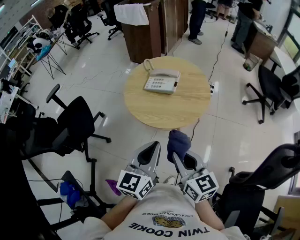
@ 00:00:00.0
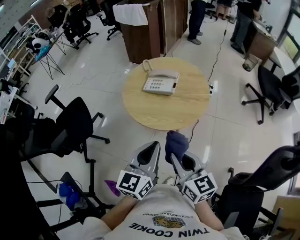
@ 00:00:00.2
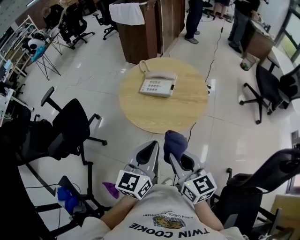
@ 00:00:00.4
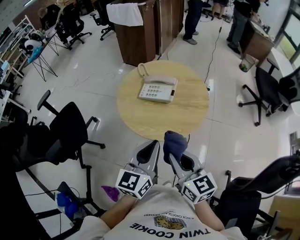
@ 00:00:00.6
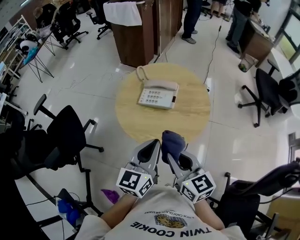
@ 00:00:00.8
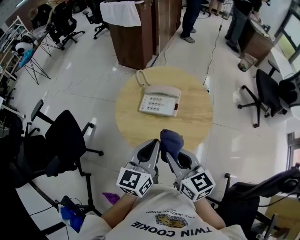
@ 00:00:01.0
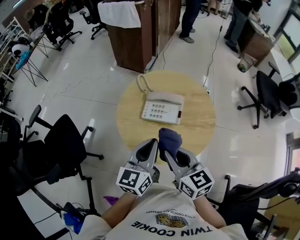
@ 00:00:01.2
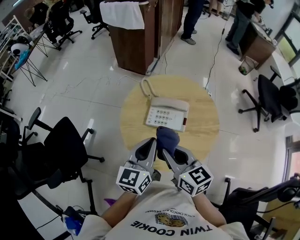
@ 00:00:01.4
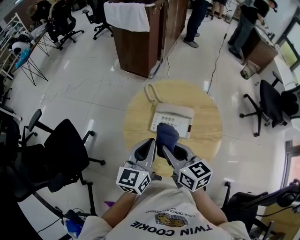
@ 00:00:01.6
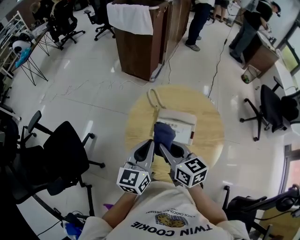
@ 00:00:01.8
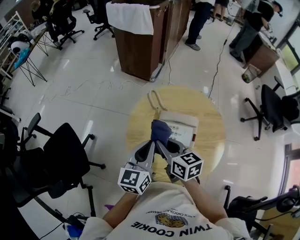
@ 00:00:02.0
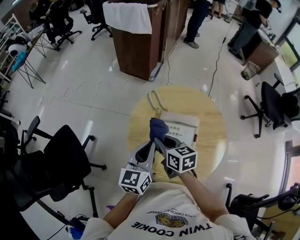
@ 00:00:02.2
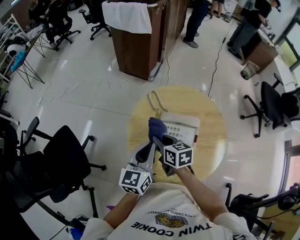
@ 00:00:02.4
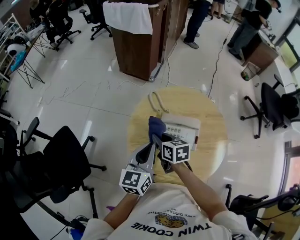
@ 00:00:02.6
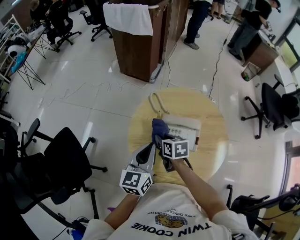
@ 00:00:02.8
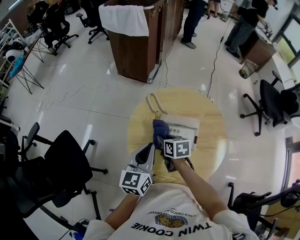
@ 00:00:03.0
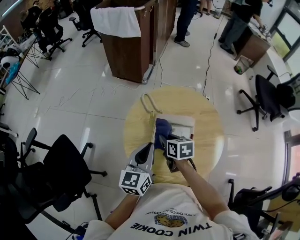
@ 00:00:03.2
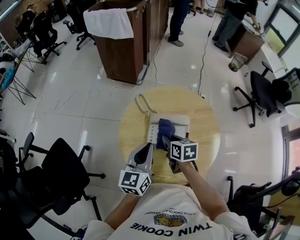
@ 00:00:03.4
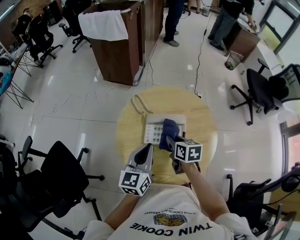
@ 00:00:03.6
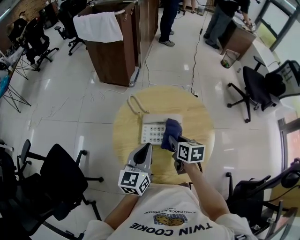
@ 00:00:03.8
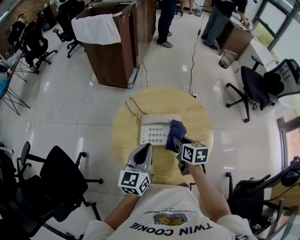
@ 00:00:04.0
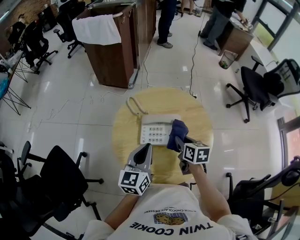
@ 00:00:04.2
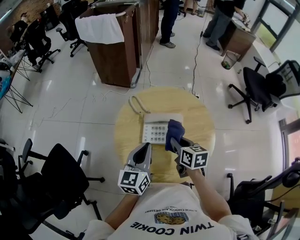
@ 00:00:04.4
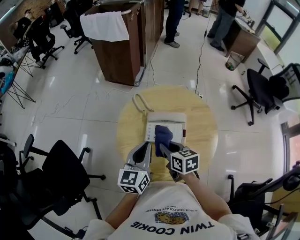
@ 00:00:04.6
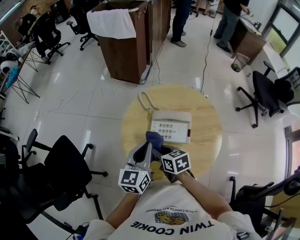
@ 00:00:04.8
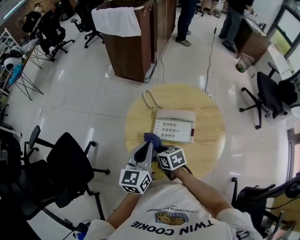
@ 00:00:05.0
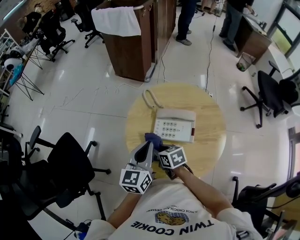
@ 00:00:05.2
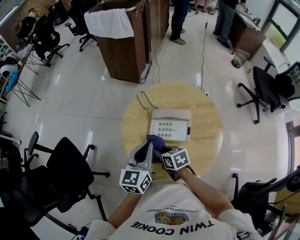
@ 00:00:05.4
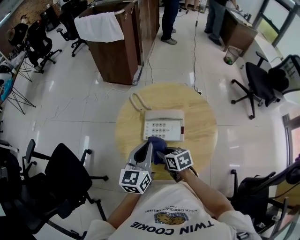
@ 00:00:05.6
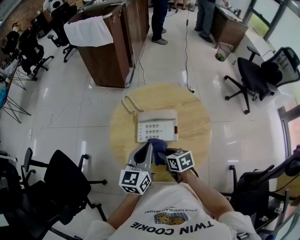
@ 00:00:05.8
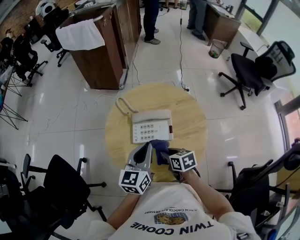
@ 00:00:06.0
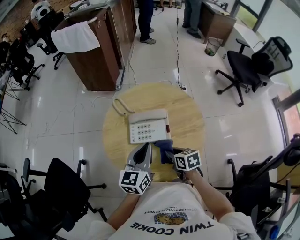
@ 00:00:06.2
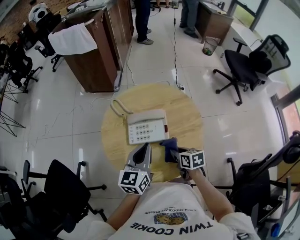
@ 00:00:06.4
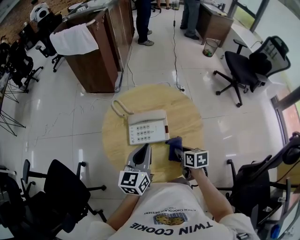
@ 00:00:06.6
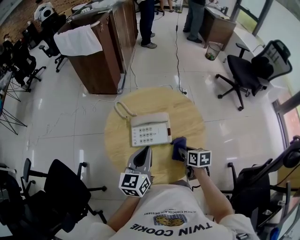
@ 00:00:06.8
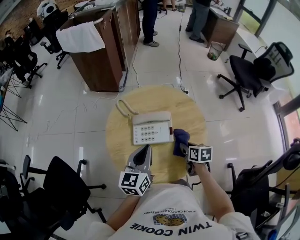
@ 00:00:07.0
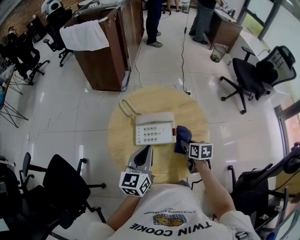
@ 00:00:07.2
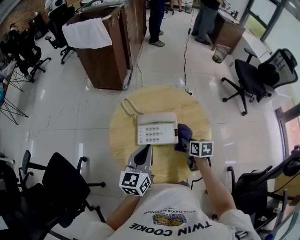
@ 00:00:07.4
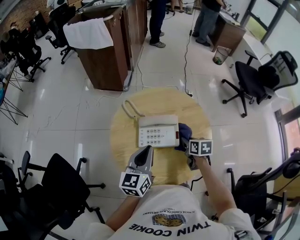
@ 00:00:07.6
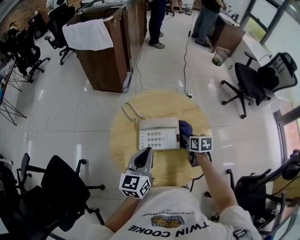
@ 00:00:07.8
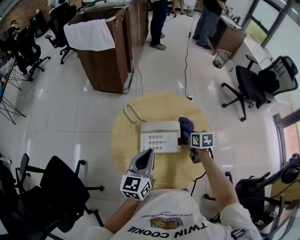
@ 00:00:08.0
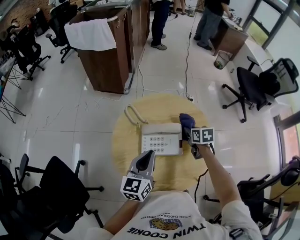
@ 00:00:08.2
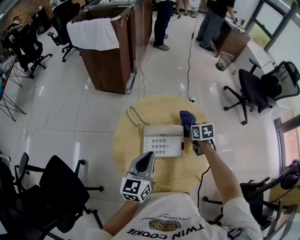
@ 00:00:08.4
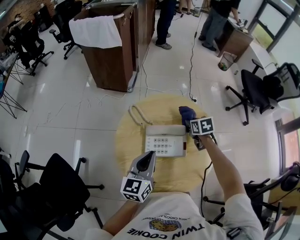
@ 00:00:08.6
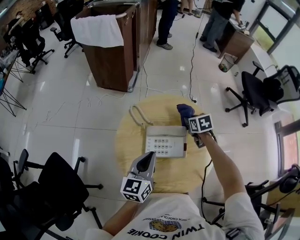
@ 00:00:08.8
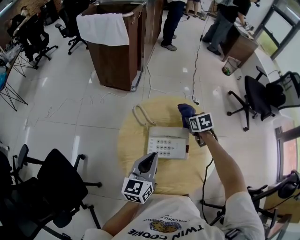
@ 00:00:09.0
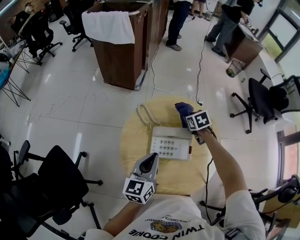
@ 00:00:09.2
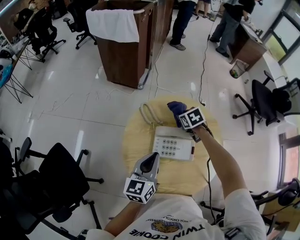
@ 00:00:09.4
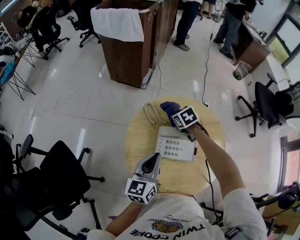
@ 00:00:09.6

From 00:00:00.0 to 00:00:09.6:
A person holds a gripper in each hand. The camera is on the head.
From 00:00:00.0 to 00:00:01.6: The grippers both shift forward by roughly 30 cm.
From 00:00:01.6 to 00:00:03.2: The right gripper heads downward and forward, covering approximately 20 cm, and changes its angle by some 30 degrees, while the left gripper goes approximately 5 cm forward.
From 00:00:03.2 to 00:00:04.8: The right gripper goes about 10 cm backward, and reaches some 15 cm to the right, then returns.
From 00:00:04.8 to 00:00:06.4: The left gripper heads to the right, covering roughly 10 cm; the right gripper shifts about 15 cm to the right, and swivels roughly 20 degrees.
From 00:00:06.4 to 00:00:08.0: The right gripper is displaced forward by approximately 15 cm.
From 00:00:08.0 to 00:00:09.6: The right gripper moves to the left and forward, some 20 cm, and swivels roughly 40 degrees.

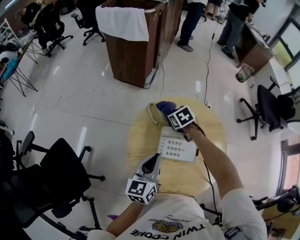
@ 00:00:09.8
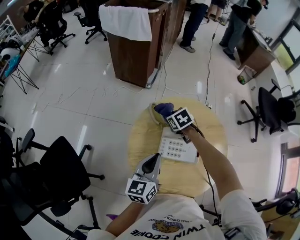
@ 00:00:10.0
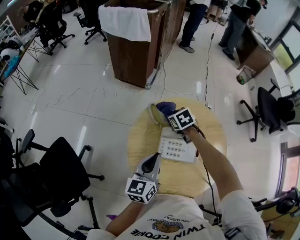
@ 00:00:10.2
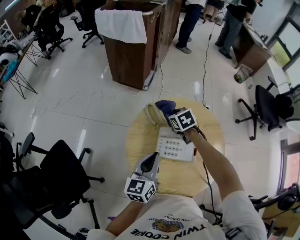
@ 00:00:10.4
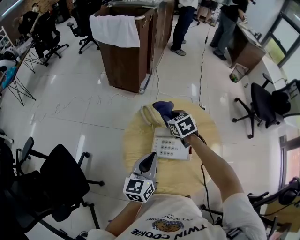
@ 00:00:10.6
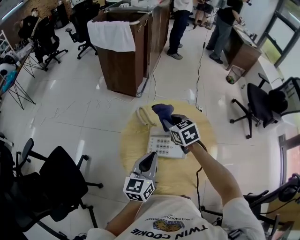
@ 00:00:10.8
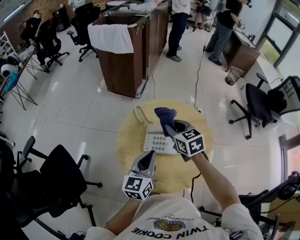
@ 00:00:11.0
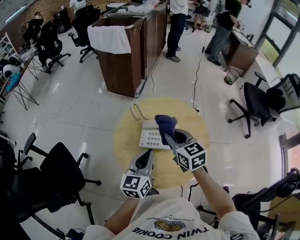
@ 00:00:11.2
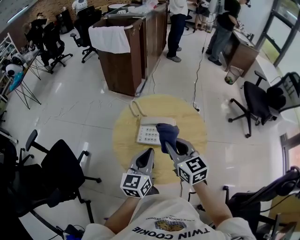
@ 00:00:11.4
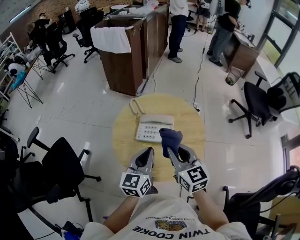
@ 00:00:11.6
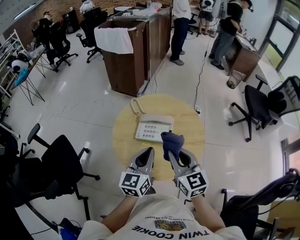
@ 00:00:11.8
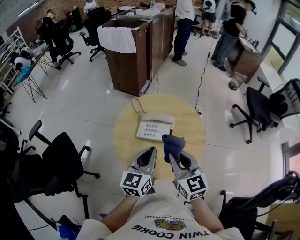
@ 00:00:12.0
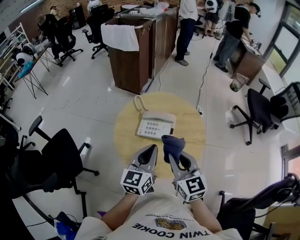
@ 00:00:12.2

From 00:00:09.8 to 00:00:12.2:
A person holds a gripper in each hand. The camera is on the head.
From 00:00:09.8 to 00:00:11.0: The right gripper is displaced upward and backward by some 20 cm, and changes its angle by roughly 30 degrees; the left gripper shifts by approximately 5 cm.
From 00:00:11.0 to 00:00:12.2: The left gripper moves backward and to the right, some 10 cm; the right gripper shifts roughly 25 cm backward, and turns by approximately 20 degrees.

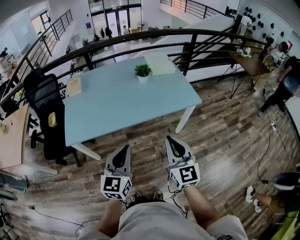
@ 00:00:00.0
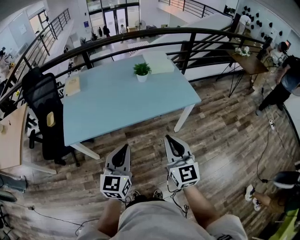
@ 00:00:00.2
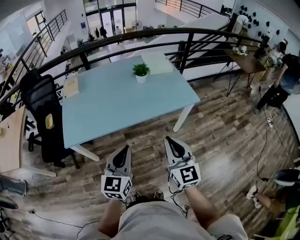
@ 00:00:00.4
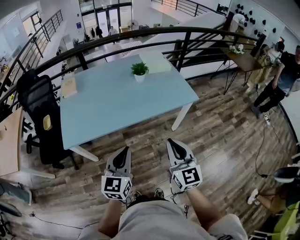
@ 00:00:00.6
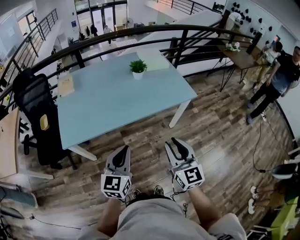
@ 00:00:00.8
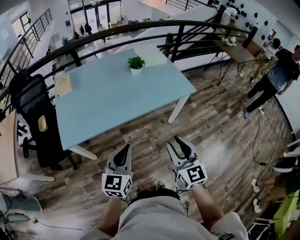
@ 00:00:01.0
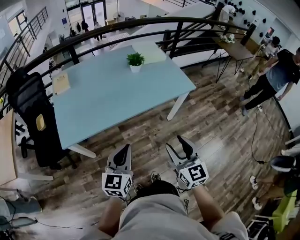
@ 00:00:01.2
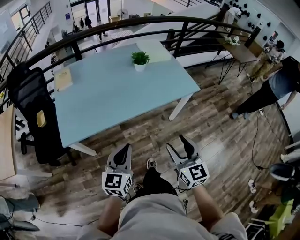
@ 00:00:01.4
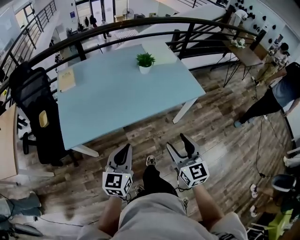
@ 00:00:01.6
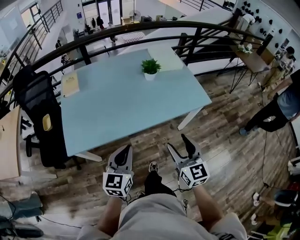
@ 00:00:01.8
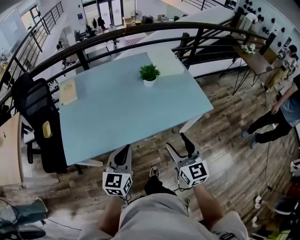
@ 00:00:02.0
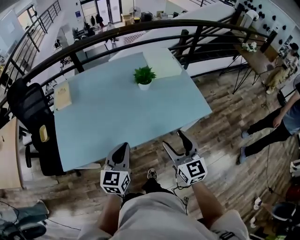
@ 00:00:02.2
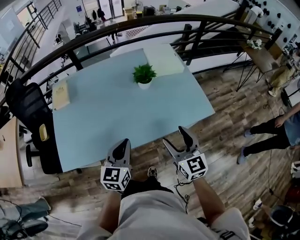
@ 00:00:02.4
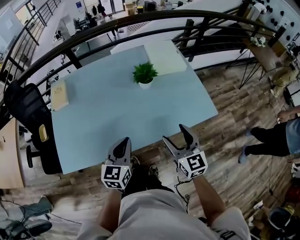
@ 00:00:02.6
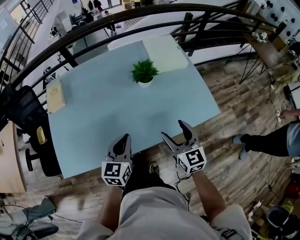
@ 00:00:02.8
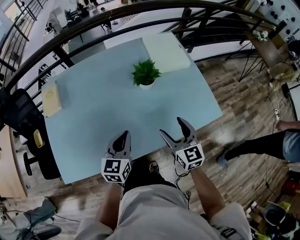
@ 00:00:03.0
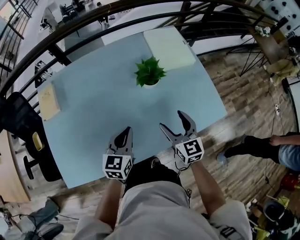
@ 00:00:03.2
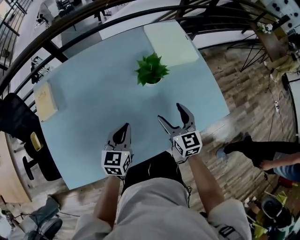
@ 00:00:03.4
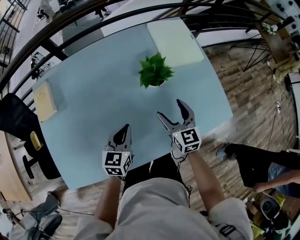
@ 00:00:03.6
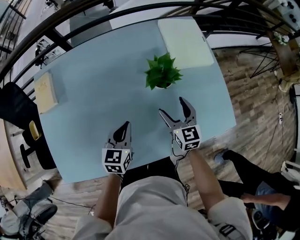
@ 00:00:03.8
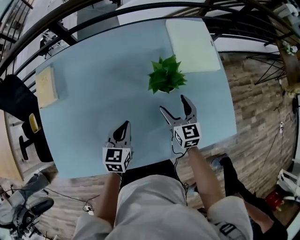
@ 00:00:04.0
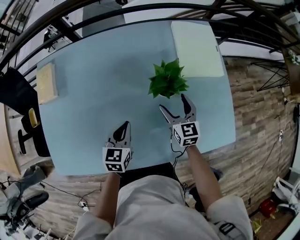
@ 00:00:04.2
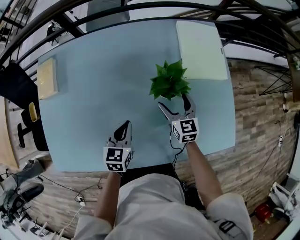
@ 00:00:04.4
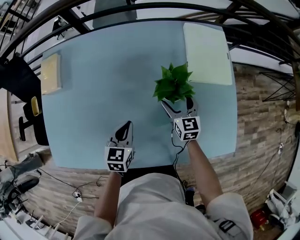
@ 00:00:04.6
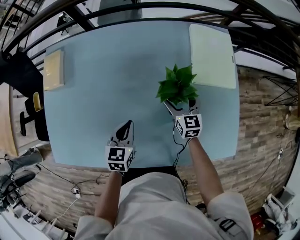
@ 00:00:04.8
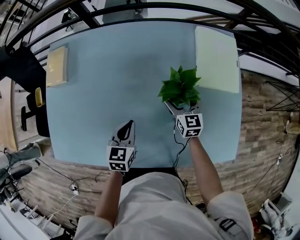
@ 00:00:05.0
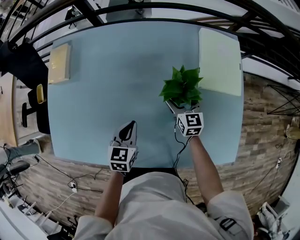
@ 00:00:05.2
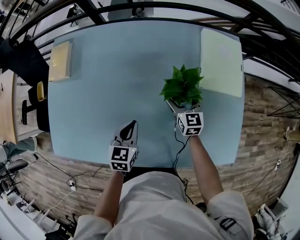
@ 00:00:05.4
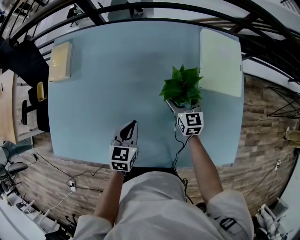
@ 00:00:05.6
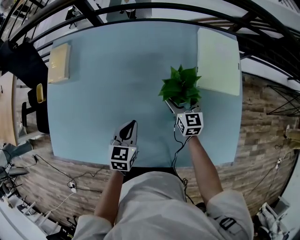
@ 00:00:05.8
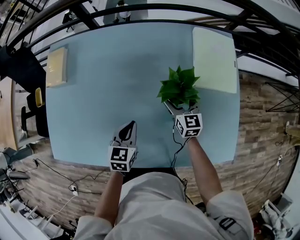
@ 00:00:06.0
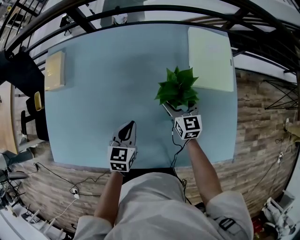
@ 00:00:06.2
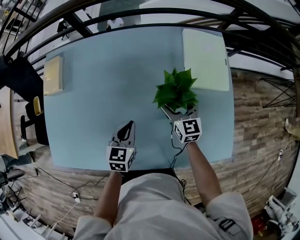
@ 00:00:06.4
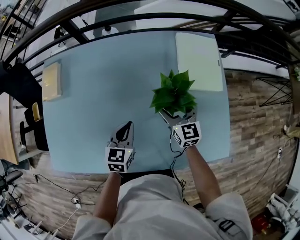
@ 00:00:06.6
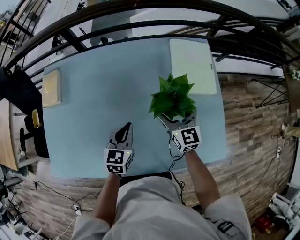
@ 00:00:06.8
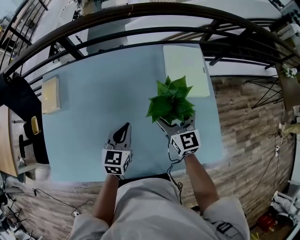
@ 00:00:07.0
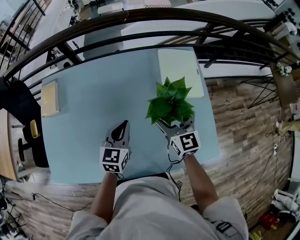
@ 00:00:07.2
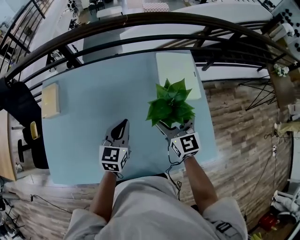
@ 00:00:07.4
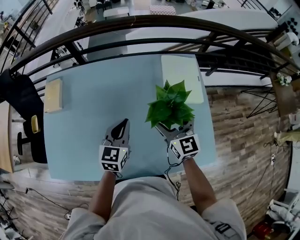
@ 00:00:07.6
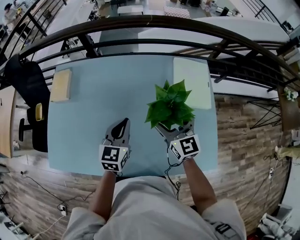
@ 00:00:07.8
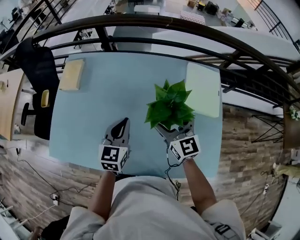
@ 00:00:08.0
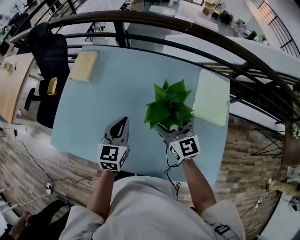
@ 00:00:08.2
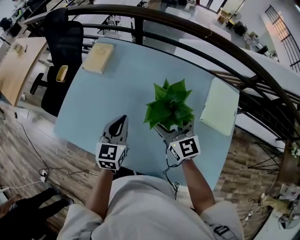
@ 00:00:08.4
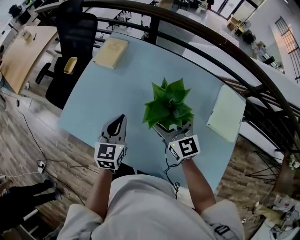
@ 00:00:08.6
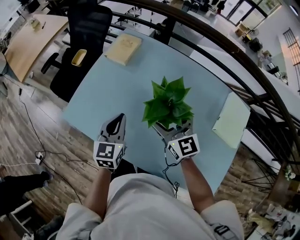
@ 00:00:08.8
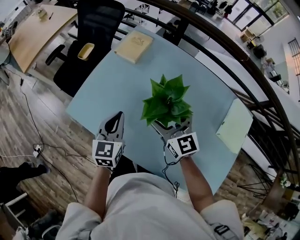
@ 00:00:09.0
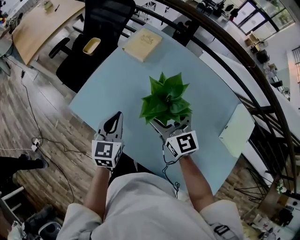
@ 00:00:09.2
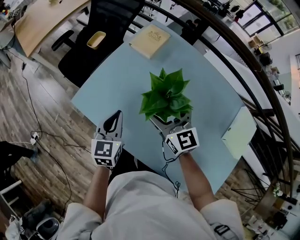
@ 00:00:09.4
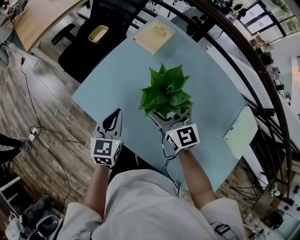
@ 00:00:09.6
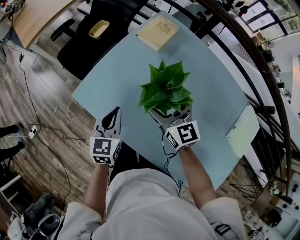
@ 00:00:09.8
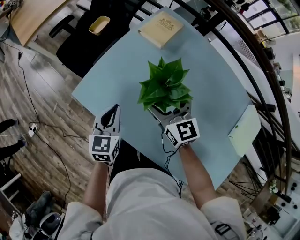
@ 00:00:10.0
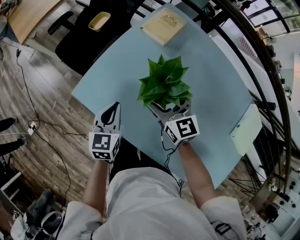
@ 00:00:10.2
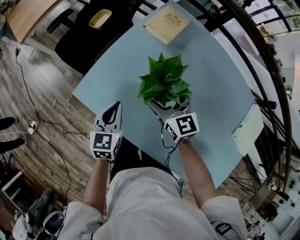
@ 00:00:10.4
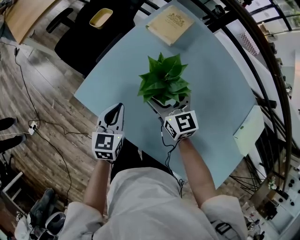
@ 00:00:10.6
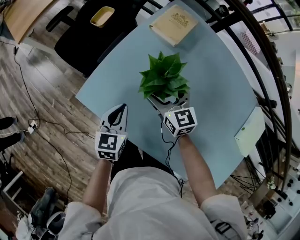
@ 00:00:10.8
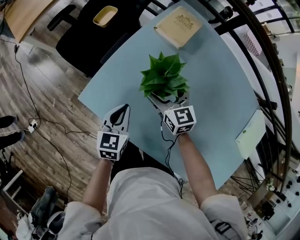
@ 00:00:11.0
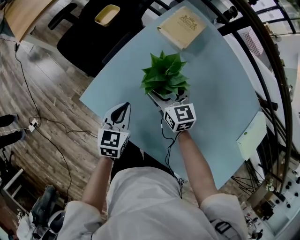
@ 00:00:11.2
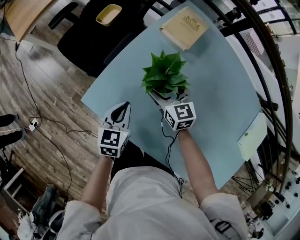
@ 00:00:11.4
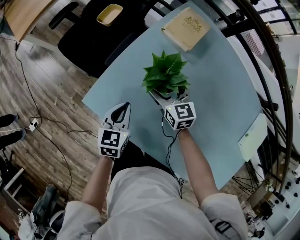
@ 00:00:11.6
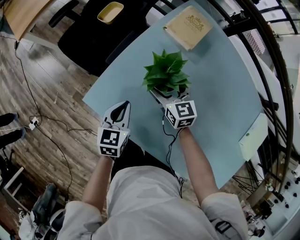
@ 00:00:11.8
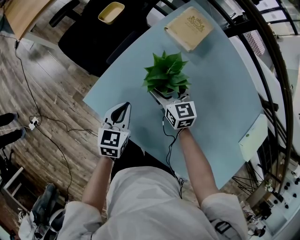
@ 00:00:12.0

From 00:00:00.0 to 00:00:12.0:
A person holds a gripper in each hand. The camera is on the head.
From 00:00:00.0 to 00:00:01.6: Both grippers move to the left and downward, roughly 10 cm. The right gripper opens up.
From 00:00:01.6 to 00:00:03.0: Both grippers travel together forward, about 35 cm.
From 00:00:03.0 to 00:00:04.4: The right gripper heads forward and downward, covering roughly 30 cm, while the left gripper shifts about 20 cm forward and downward.
From 00:00:04.4 to 00:00:06.0: The right gripper ends up roughly 5 cm from where it was.
From 00:00:06.0 to 00:00:07.6: The left gripper goes some 15 cm upward and to the right. The right gripper travels upward by some 20 cm.
From 00:00:07.6 to 00:00:09.0: The left gripper changes place by some 35 cm, and swivels some 40 degrees. Meanwhile the right gripper shifts by roughly 35 cm, and swivels some 40 degrees.
From 00:00:09.0 to 00:00:10.4: The right gripper travels to the left, downward and forward by approximately 20 cm. The left gripper is displaced to the left and downward by roughly 20 cm.
From 00:00:10.4 to 00:00:12.0: The right gripper heads downward, forward and to the left, covering some 15 cm; the left gripper is displaced downward by roughly 5 cm.
